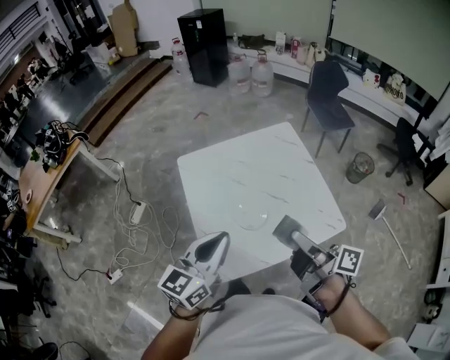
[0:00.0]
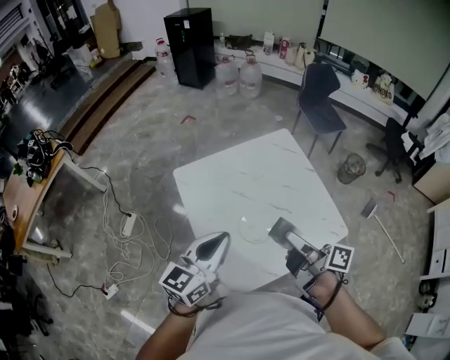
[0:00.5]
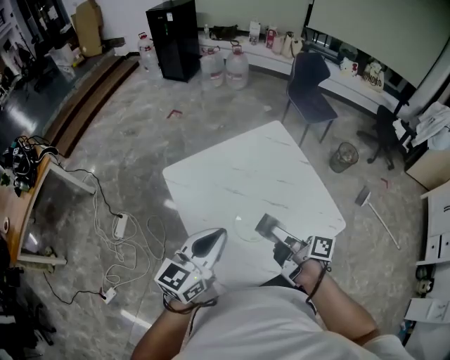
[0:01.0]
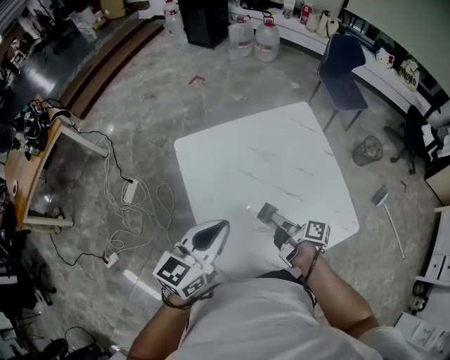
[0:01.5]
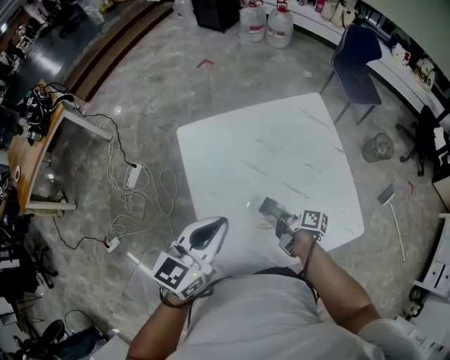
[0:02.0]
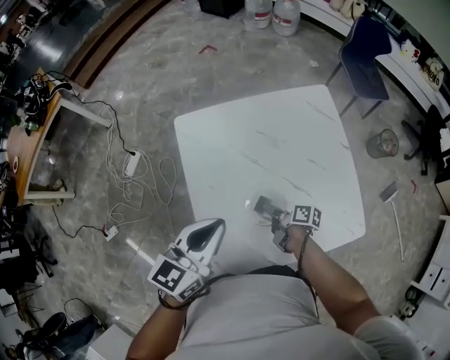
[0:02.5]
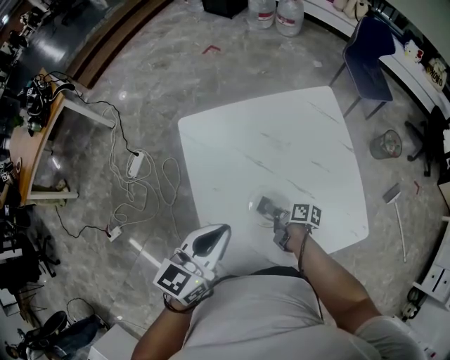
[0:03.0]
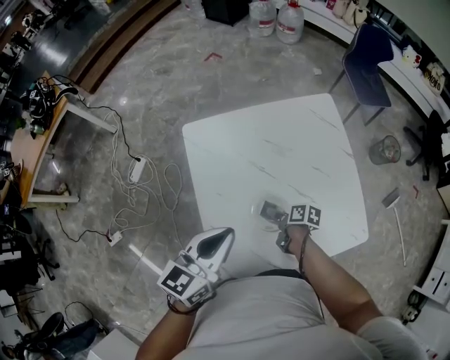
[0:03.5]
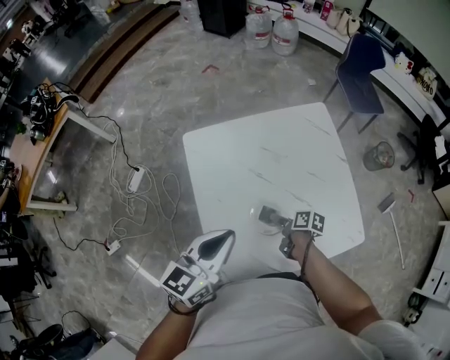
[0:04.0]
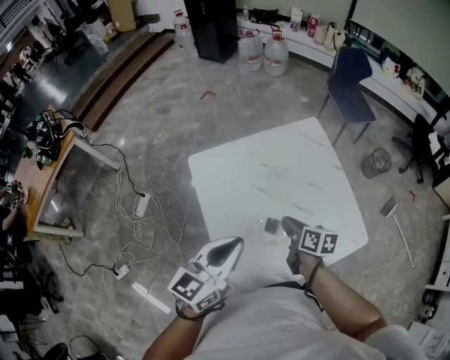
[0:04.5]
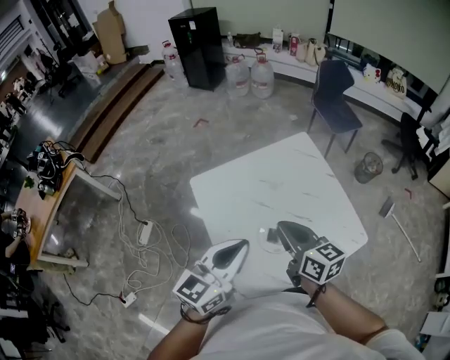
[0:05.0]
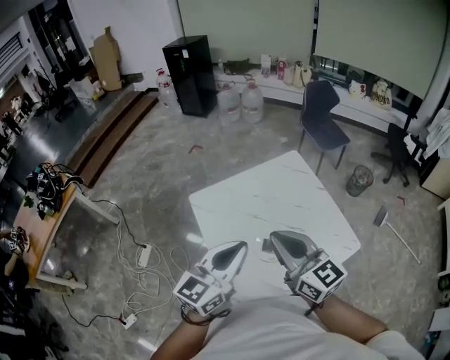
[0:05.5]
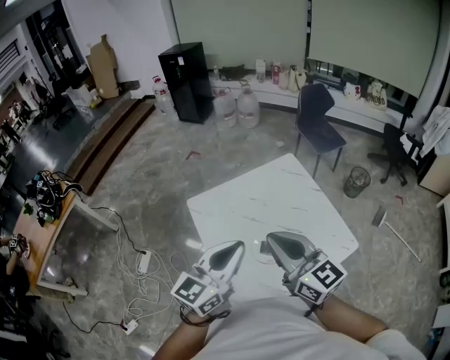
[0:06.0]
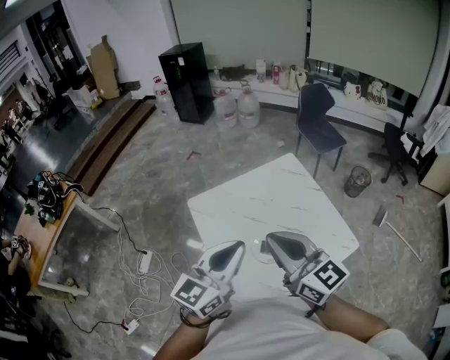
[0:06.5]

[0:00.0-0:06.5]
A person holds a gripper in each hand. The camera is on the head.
0:00.0 to 0:02.0: The right gripper shifts about 40 cm downward and forward, and swivels about 30 degrees, while the left gripper shifts roughly 20 cm forward and downward.
0:02.0 to 0:04.5: The right gripper is displaced upward by approximately 10 cm, rotates about 30 degrees, and opens and closes again.
0:04.5 to 0:06.5: The right gripper is displaced upward by approximately 35 cm, and tilts its fingers some 40 degrees upward. The left gripper shifts roughly 15 cm upward.

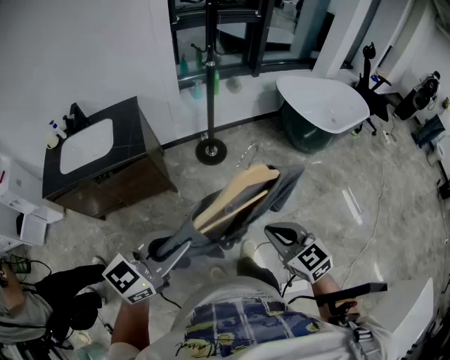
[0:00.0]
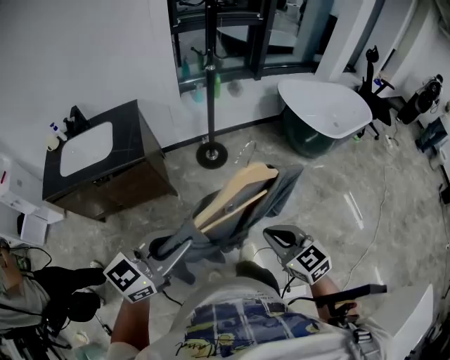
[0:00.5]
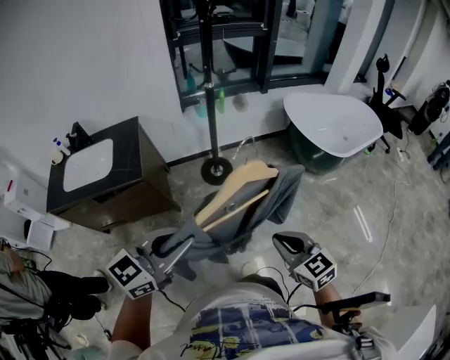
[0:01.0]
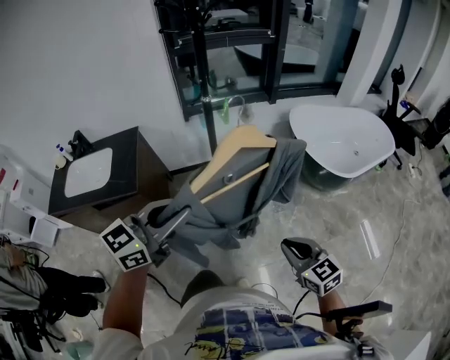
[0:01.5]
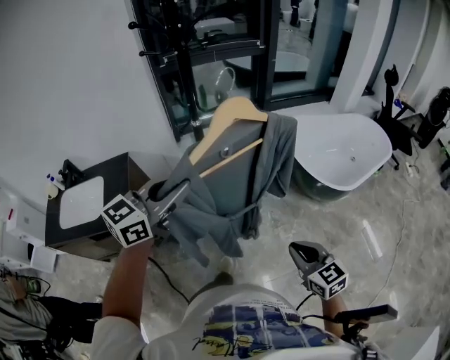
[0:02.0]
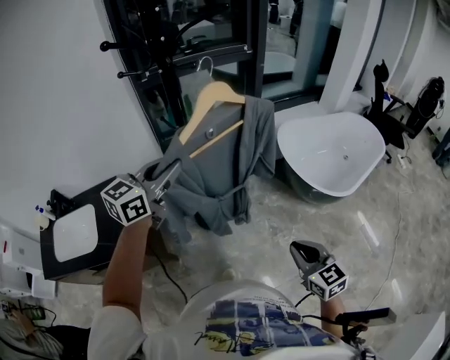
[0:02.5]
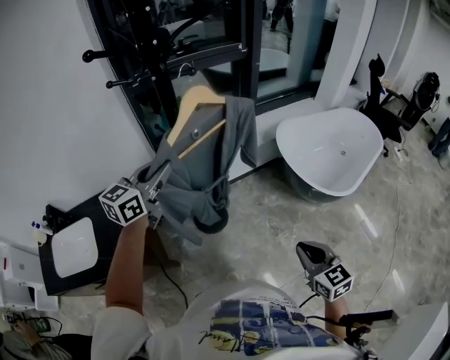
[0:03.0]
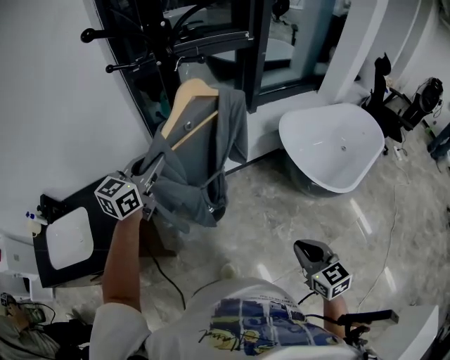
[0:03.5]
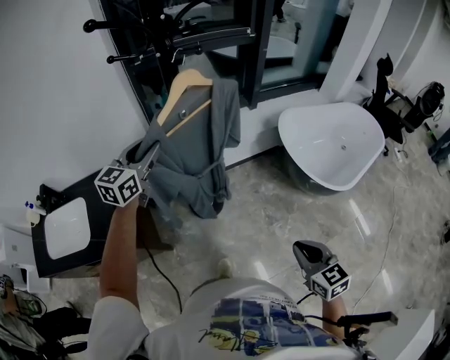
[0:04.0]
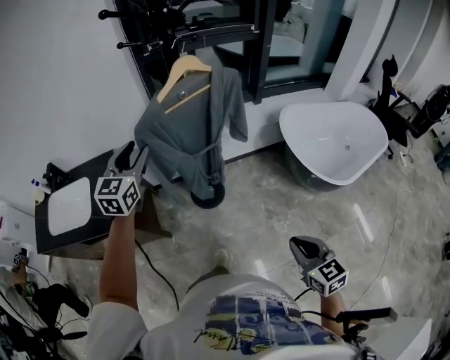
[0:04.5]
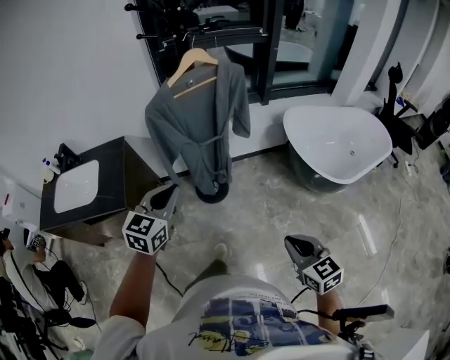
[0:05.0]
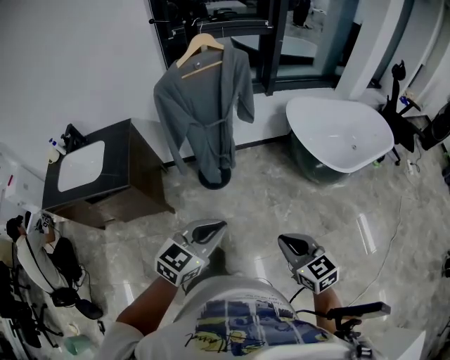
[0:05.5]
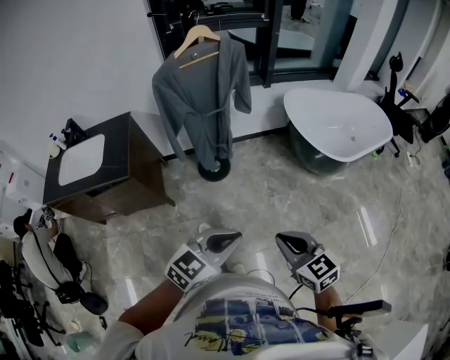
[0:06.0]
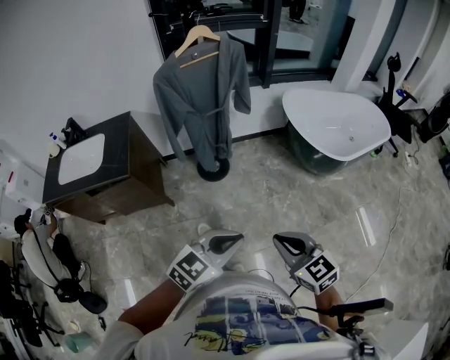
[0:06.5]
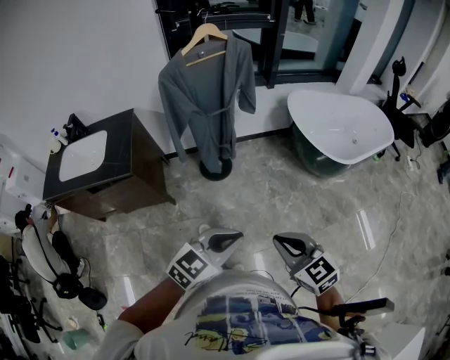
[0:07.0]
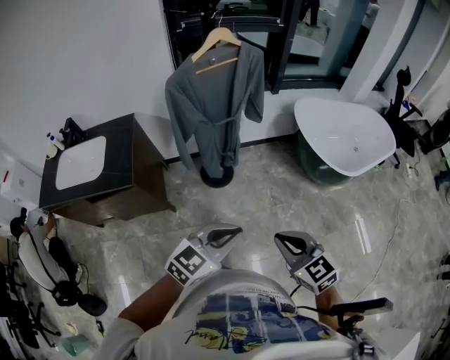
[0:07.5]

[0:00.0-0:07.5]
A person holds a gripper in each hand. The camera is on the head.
0:00.0 to 0:02.0: The left gripper heads forward, covering approximately 40 cm; the right gripper is displaced forward and to the right by approximately 35 cm.
0:02.0 to 0:04.0: The left gripper moves forward and to the left, about 30 cm. Meanwhile the right gripper shifts about 10 cm forward.
0:04.0 to 0:05.5: The right gripper moves backward, some 20 cm. Meanwhile the left gripper travels backward and to the right by approximately 50 cm, and closes its fingers.
0:05.5 to 0:07.5: The right gripper is displaced to the left by approximately 5 cm, and moves roughly 5 cm backward and comes back; the left gripper reaches roughly 10 cm backward, then returns.

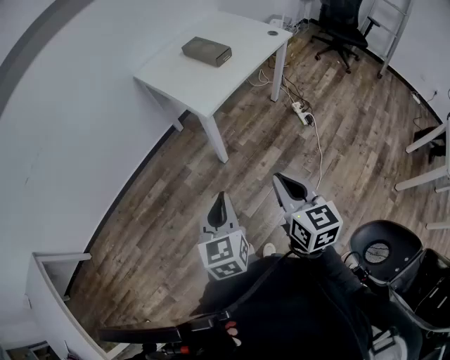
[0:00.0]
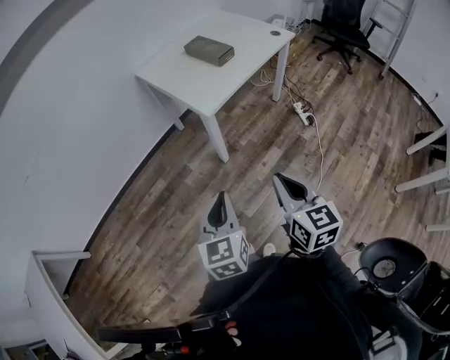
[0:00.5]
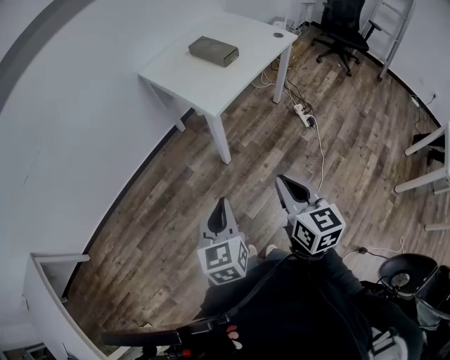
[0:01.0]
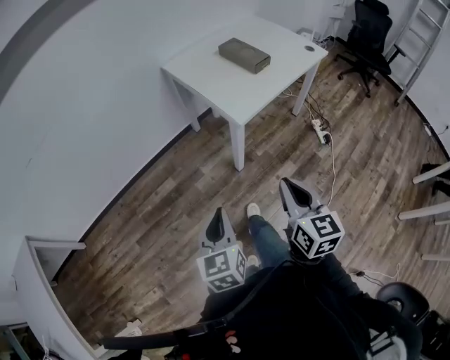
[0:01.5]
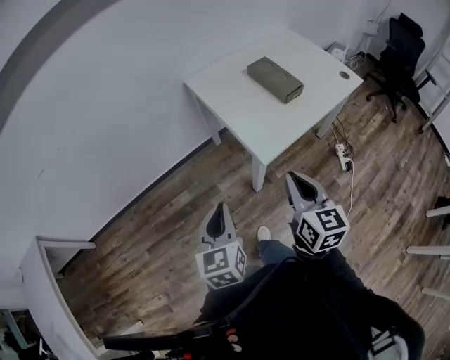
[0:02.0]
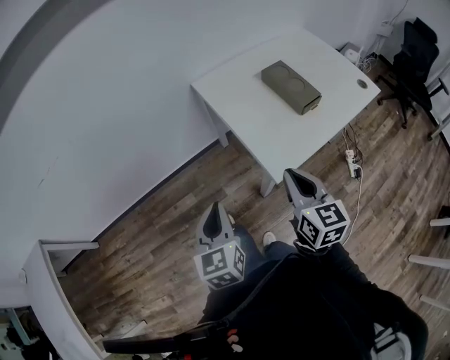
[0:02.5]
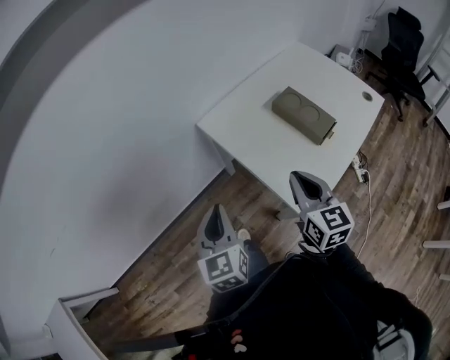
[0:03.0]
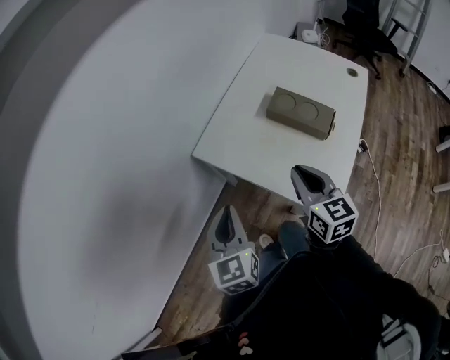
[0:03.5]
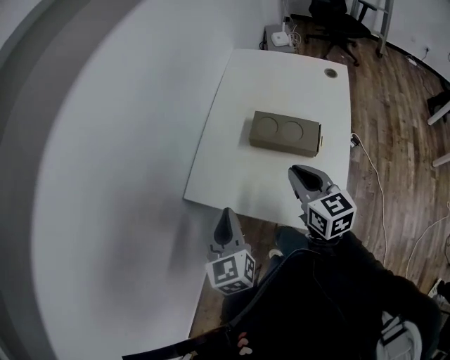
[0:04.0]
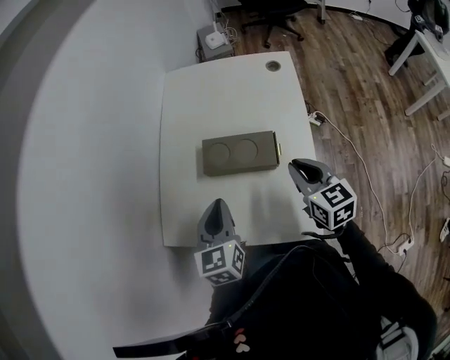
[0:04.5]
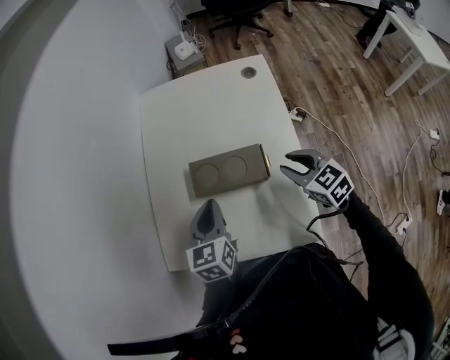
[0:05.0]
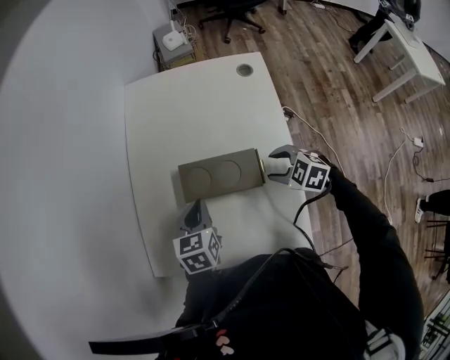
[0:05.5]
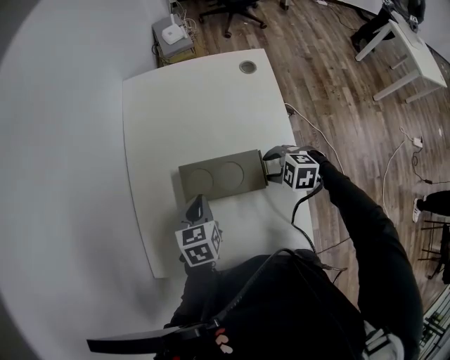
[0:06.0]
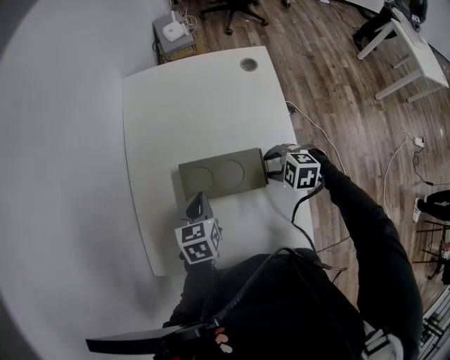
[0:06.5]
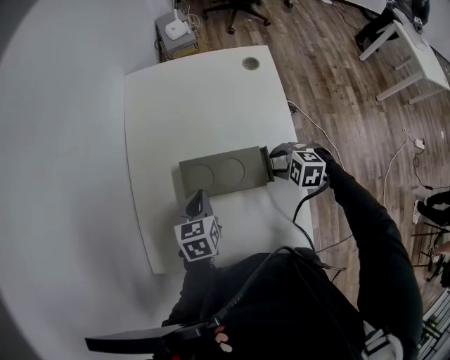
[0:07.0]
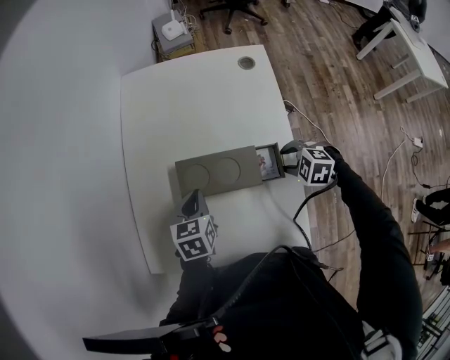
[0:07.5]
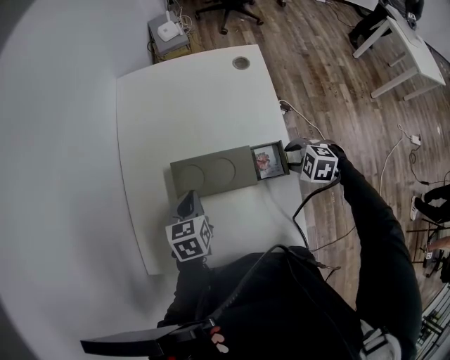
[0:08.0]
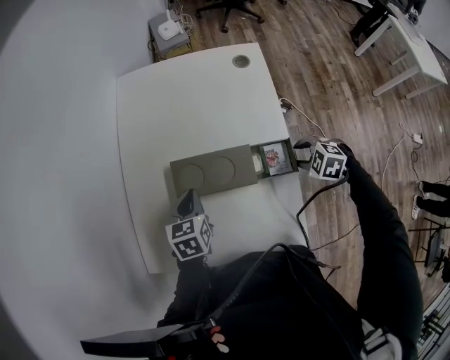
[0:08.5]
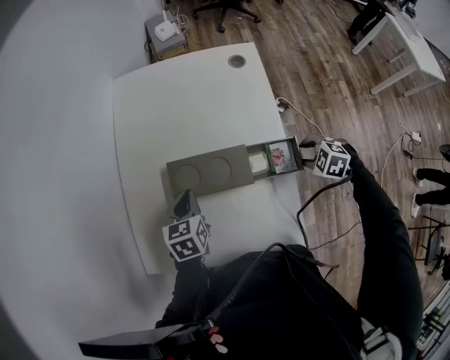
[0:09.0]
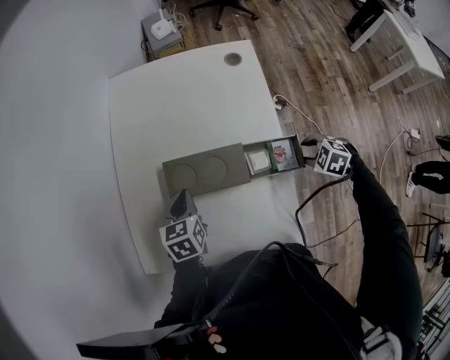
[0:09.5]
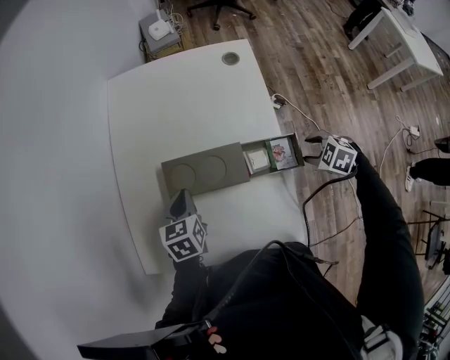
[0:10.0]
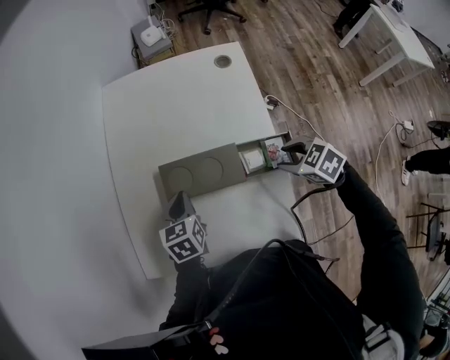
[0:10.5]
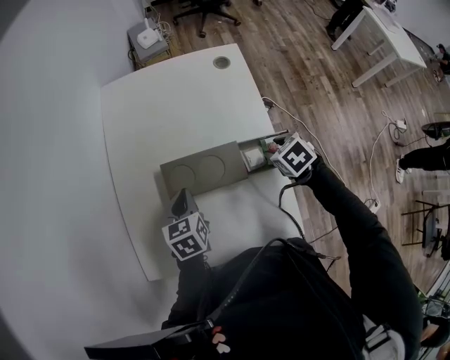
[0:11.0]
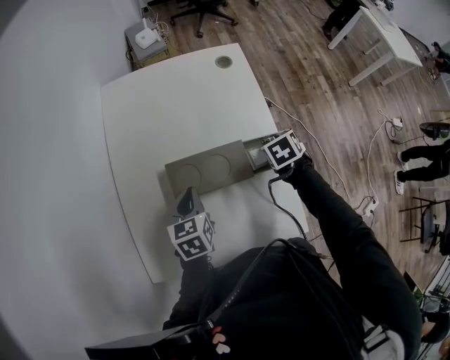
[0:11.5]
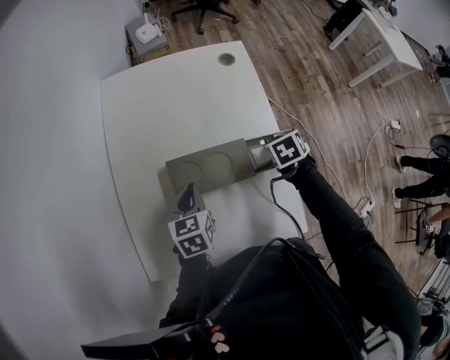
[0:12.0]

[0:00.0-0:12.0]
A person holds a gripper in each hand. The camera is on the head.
0:00.0 to 0:02.0: The left gripper travels forward and to the left by some 25 cm. Meanwhile the right gripper moves forward, some 30 cm.
0:02.0 to 0:04.0: Both grippers are carried about 50 cm. The right gripper swivels approximately 30 degrees. Meanwhile the left gripper changes its angle by roughly 30 degrees.
0:04.0 to 0:06.0: The right gripper is displaced downward, to the right and forward by about 30 cm, tilts its fingers roughly 50 degrees downward, and opens its fingers; the left gripper moves forward, to the right and downward, some 35 cm, and rotates about 40 degrees.
0:06.0 to 0:08.0: The right gripper goes some 10 cm to the right.
0:08.0 to 0:10.0: The right gripper moves approximately 10 cm.
0:10.0 to 0:12.0: The right gripper ends up some 10 cm from where it was, rotates around the line of its fingers by approximately 50 degrees, clockwise from behind, and closes.
